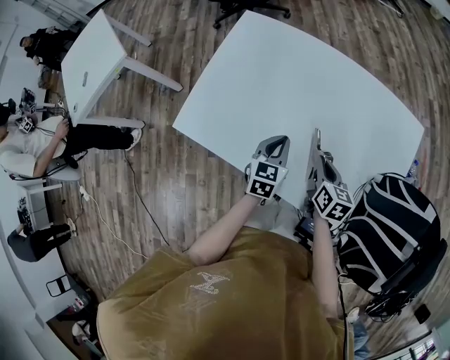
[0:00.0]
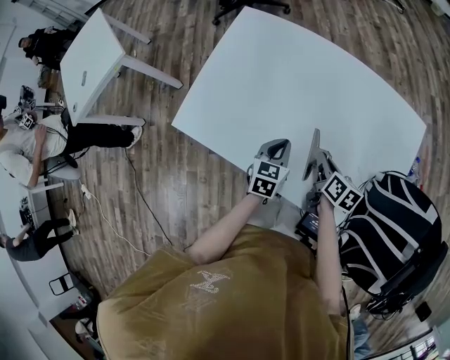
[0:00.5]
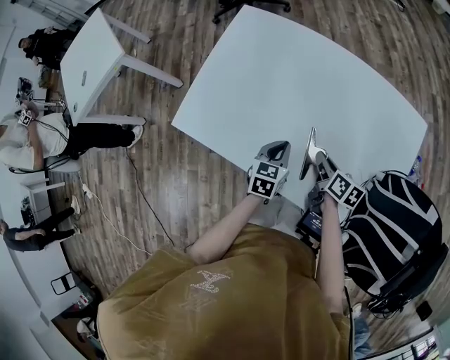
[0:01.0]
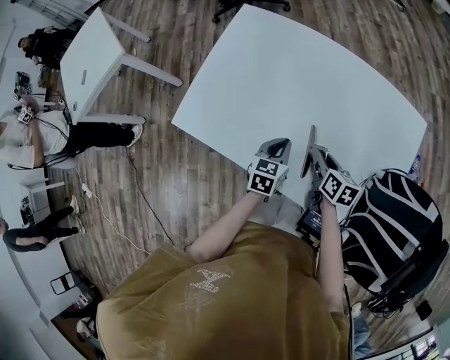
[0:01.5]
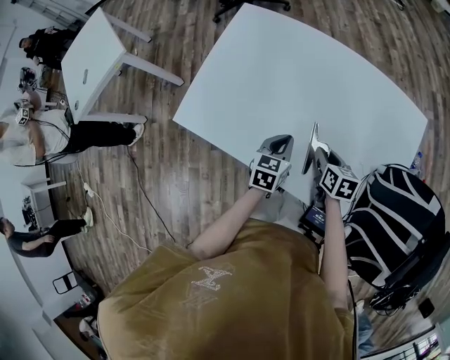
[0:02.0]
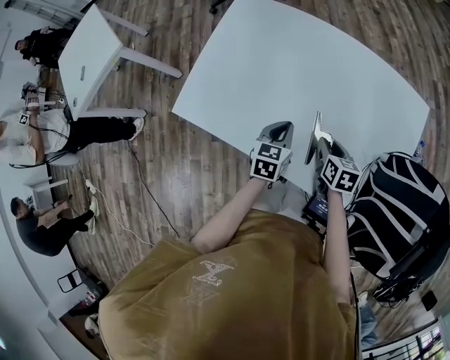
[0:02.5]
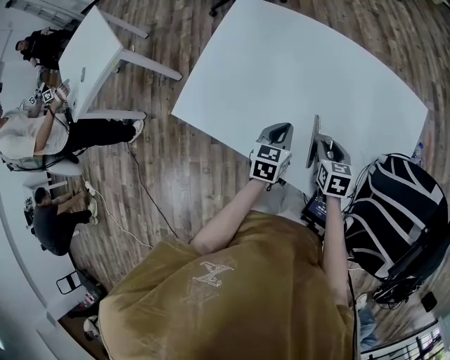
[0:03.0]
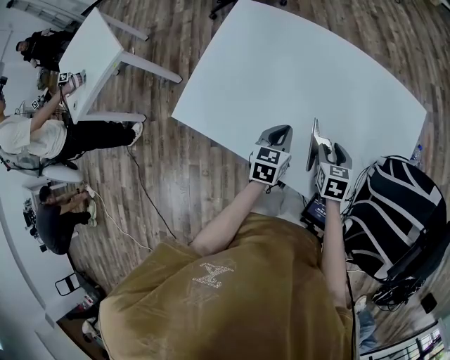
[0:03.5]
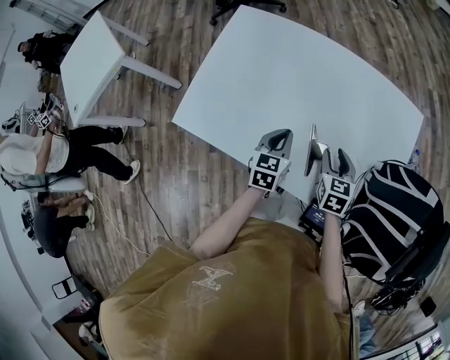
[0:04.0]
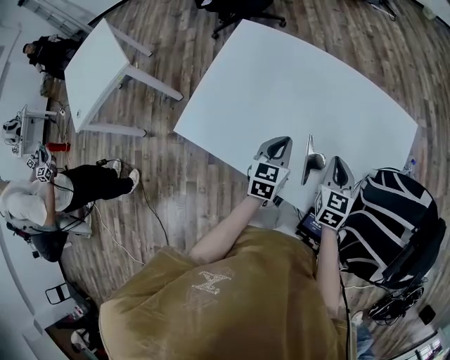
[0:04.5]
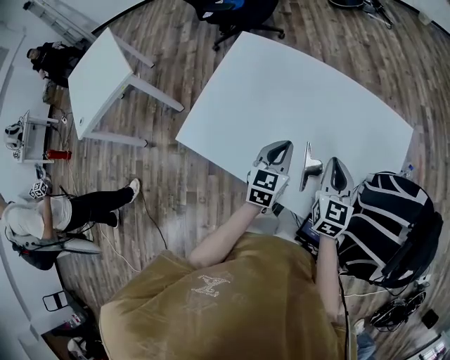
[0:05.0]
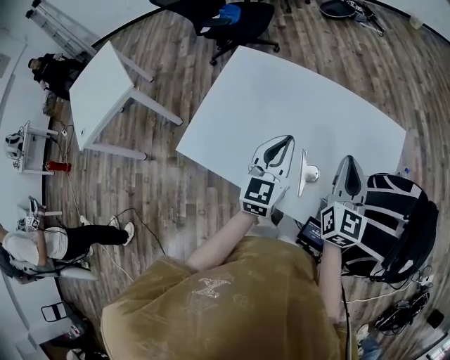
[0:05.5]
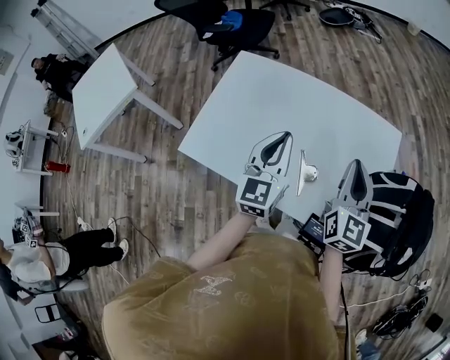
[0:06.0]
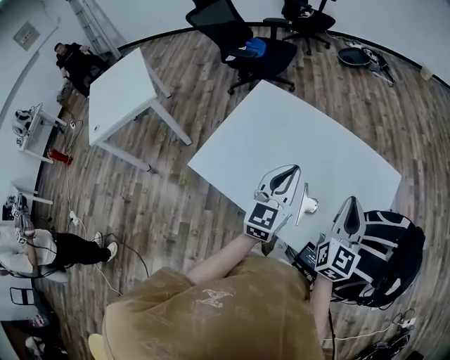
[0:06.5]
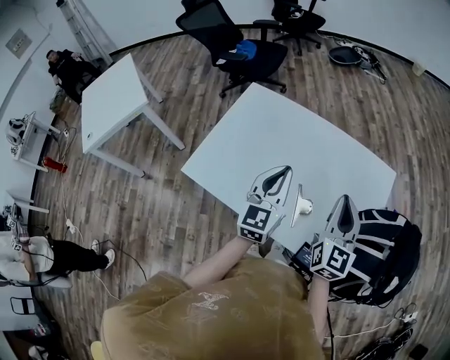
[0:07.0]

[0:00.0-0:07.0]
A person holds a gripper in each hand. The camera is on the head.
0:00.0 to 0:02.0: The right gripper changes place by about 5 cm.
0:02.0 to 0:03.5: The right gripper changes its angle by about 20 degrees, and opens.
0:03.5 to 0:05.0: The left gripper travels upward by roughly 10 cm, while the right gripper goes some 15 cm upward, turns by approximately 30 degrees, and closes.
0:05.0 to 0:07.0: Both grippers travel together upward, some 15 cm. The left gripper swivels roughly 20 degrees.

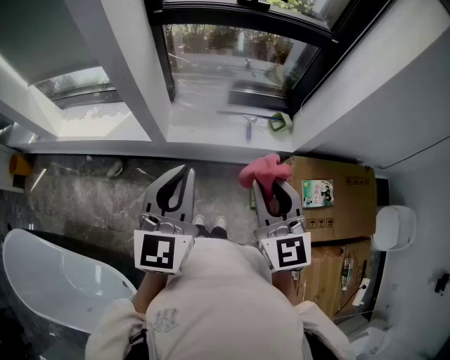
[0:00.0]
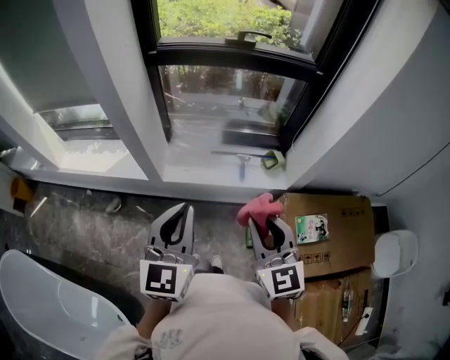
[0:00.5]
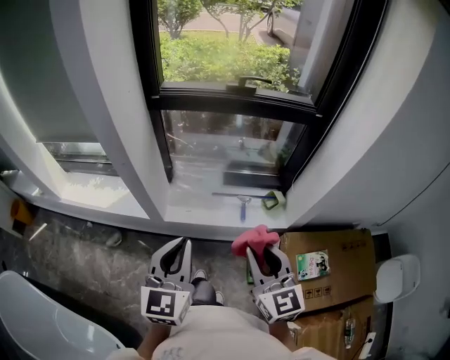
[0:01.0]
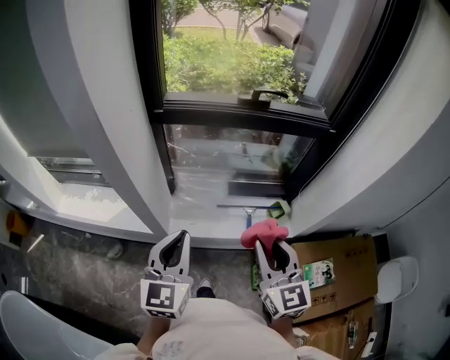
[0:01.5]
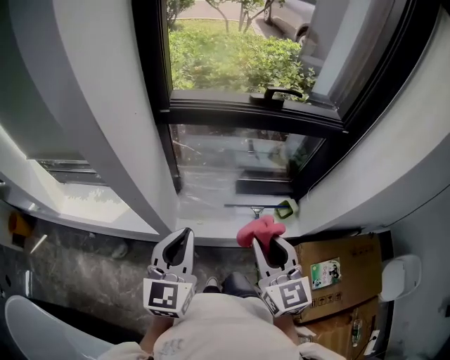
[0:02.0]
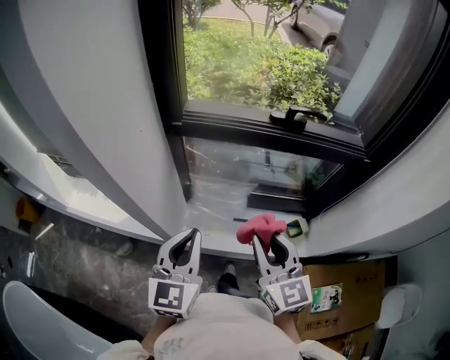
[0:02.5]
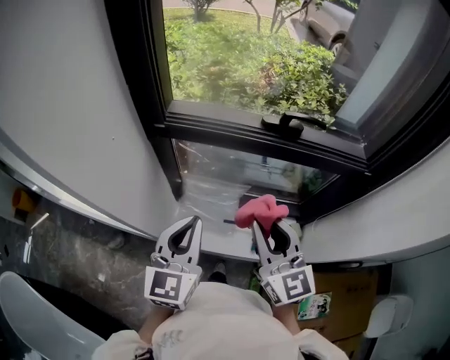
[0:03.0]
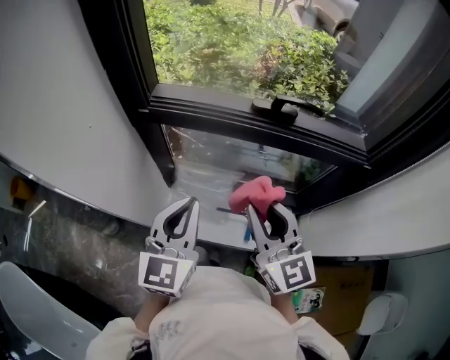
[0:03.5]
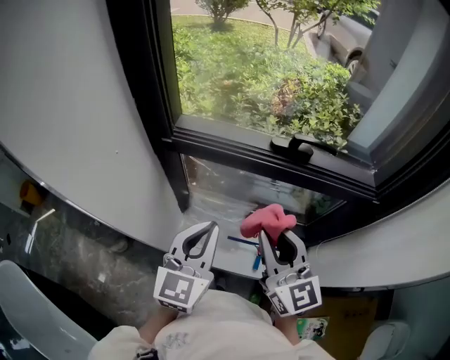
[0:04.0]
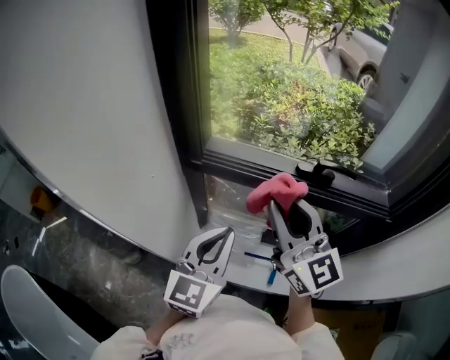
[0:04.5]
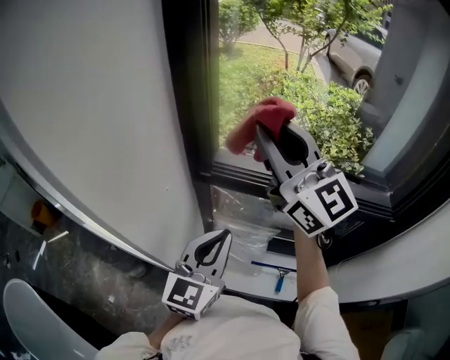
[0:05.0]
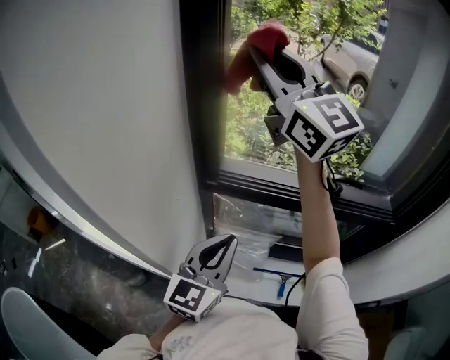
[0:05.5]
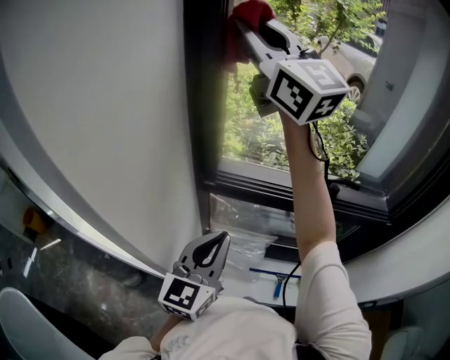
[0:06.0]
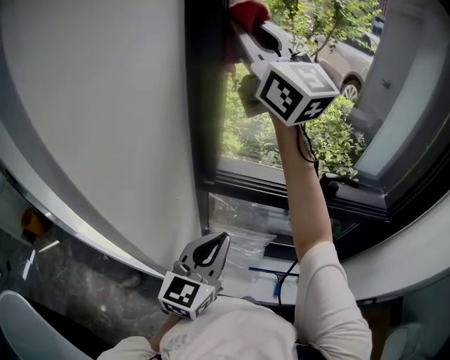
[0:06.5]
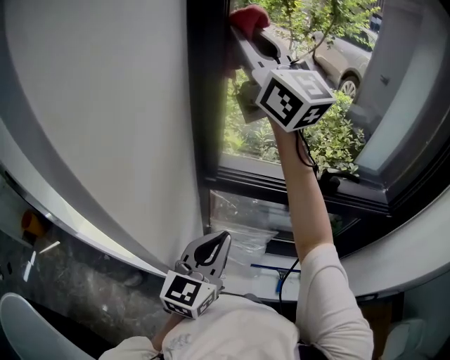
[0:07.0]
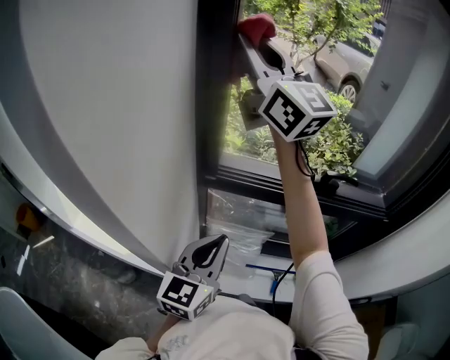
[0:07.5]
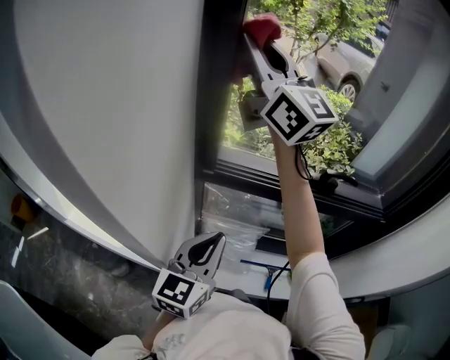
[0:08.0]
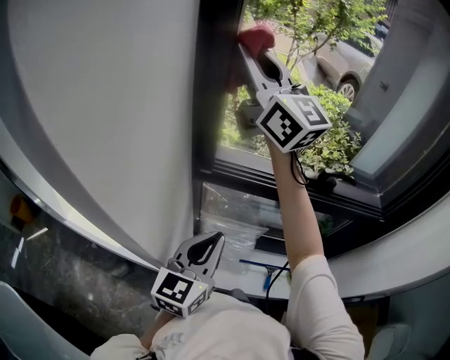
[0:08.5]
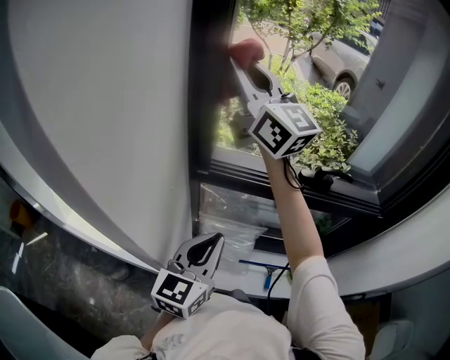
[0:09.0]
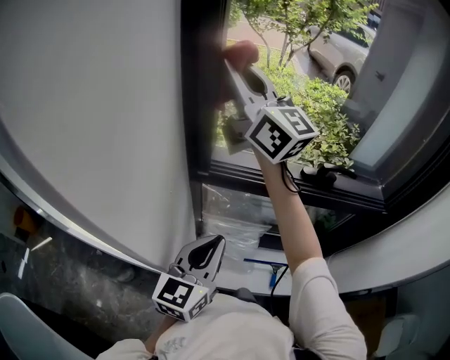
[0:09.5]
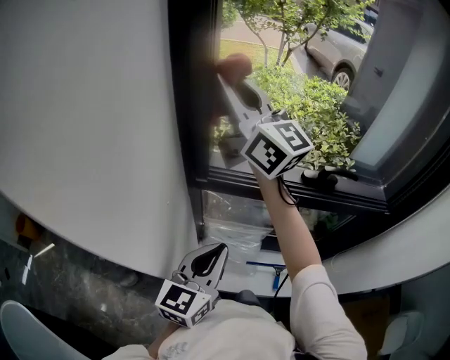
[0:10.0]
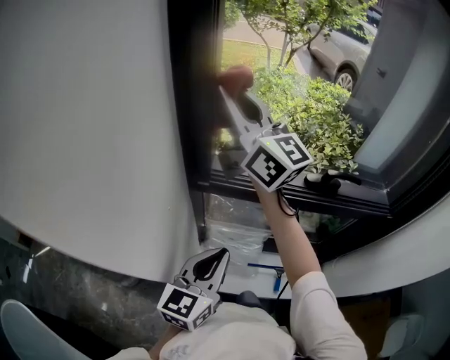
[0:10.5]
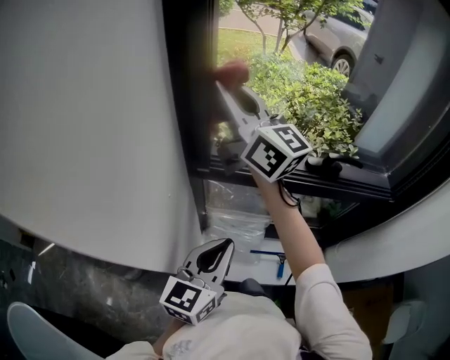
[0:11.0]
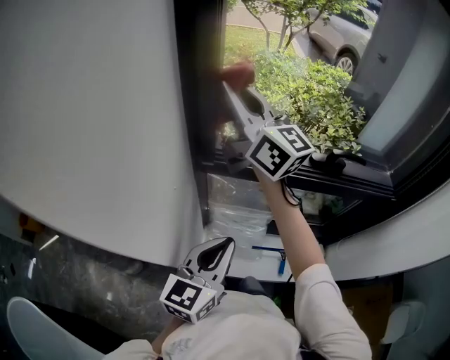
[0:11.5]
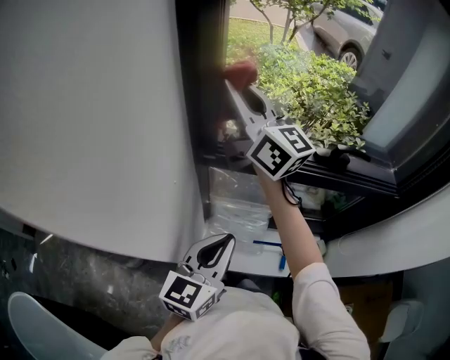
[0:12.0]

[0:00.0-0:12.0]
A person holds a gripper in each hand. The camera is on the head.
0:00.0 to 0:02.0: The grippers both shift forward by roughly 20 cm.
0:02.0 to 0:04.0: The left gripper is displaced forward and to the right by some 20 cm. Meanwhile the right gripper heads forward, covering some 20 cm.
0:04.0 to 0:06.0: The right gripper travels upward, forward and to the left by about 50 cm, and turns by some 40 degrees; the left gripper shifts roughly 10 cm to the left and forward.
0:06.0 to 0:08.0: The right gripper travels downward by about 5 cm.
0:08.0 to 0:10.0: The right gripper shifts about 10 cm downward.
0:10.0 to 0:12.0: The right gripper travels downward by some 10 cm.

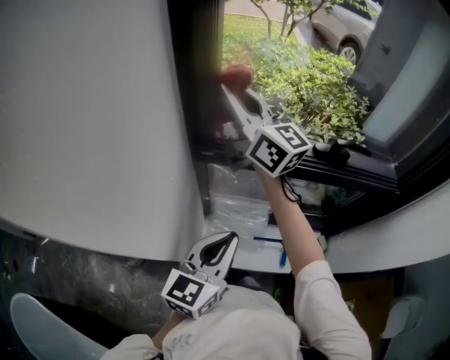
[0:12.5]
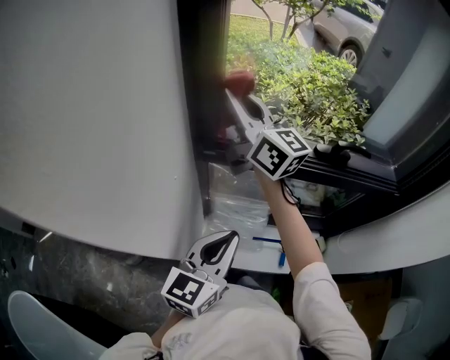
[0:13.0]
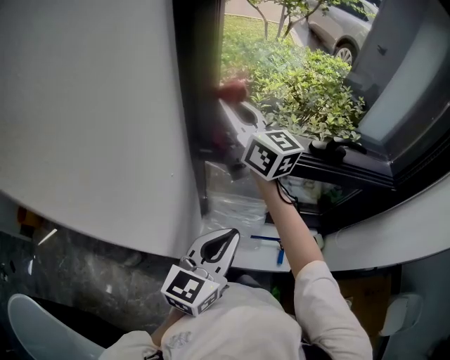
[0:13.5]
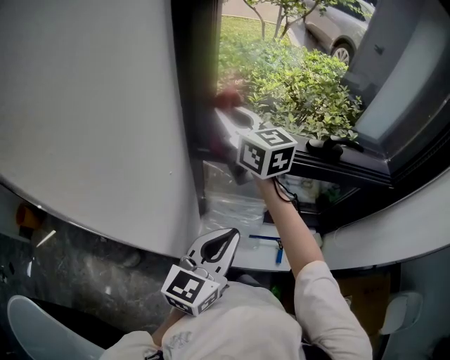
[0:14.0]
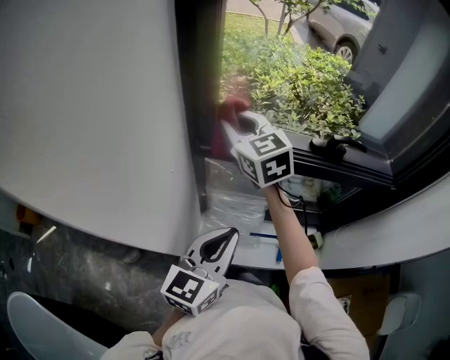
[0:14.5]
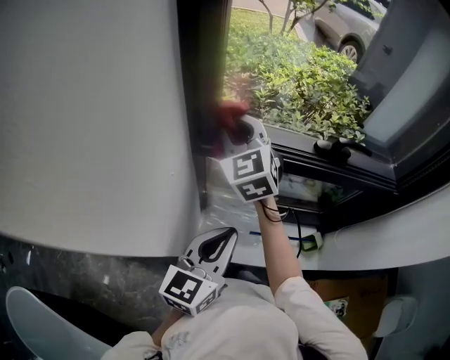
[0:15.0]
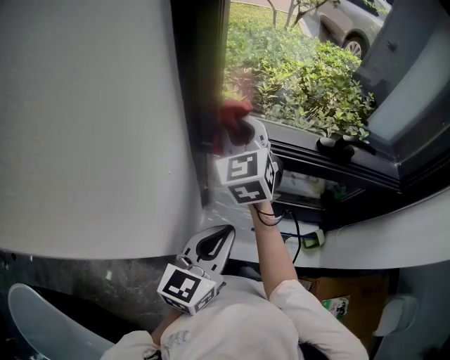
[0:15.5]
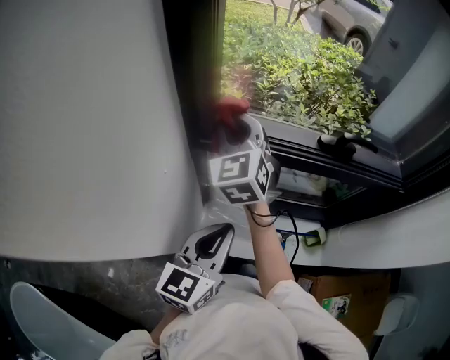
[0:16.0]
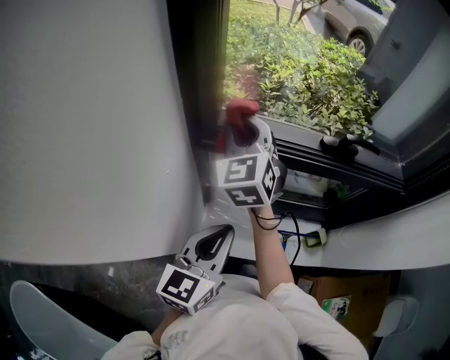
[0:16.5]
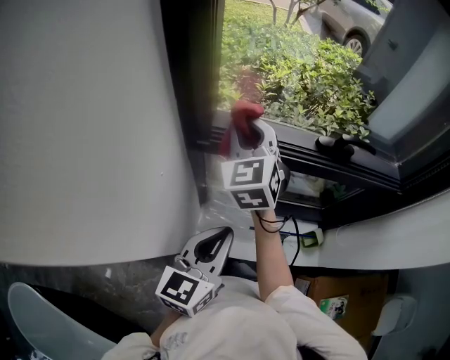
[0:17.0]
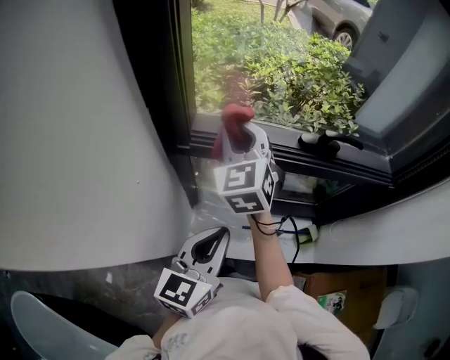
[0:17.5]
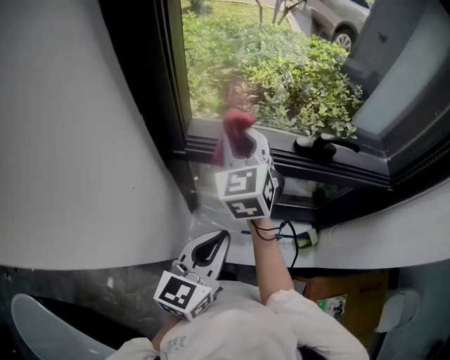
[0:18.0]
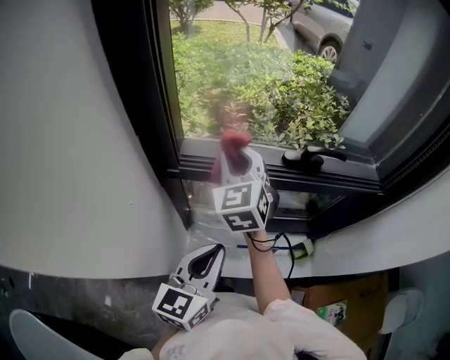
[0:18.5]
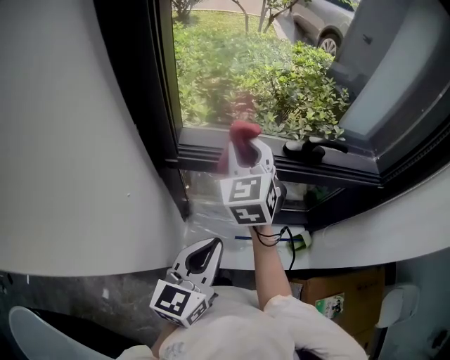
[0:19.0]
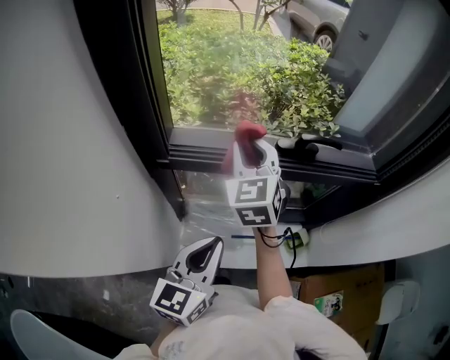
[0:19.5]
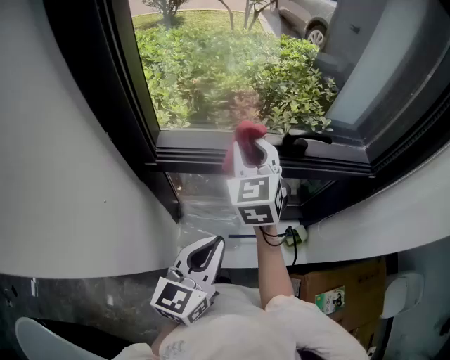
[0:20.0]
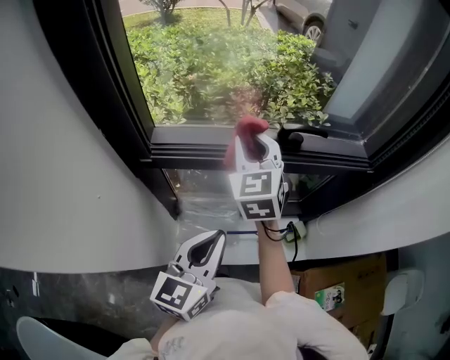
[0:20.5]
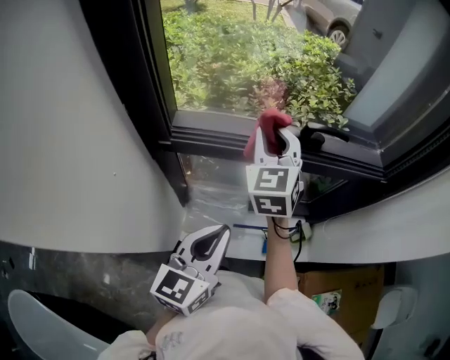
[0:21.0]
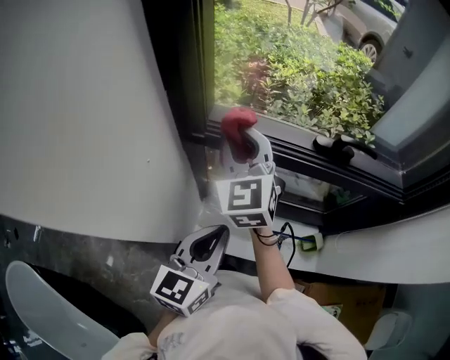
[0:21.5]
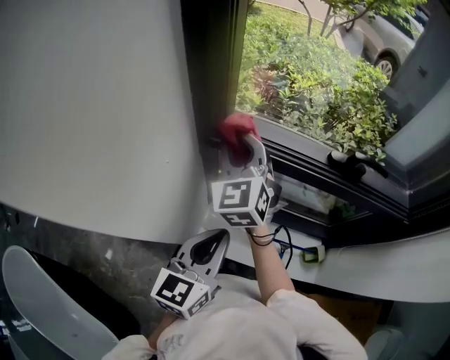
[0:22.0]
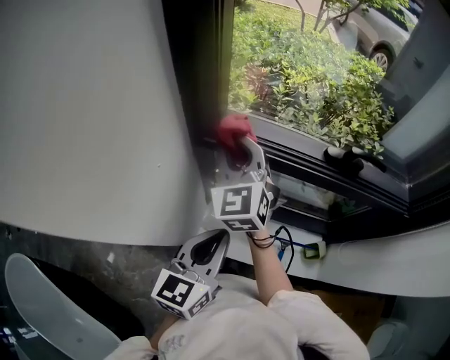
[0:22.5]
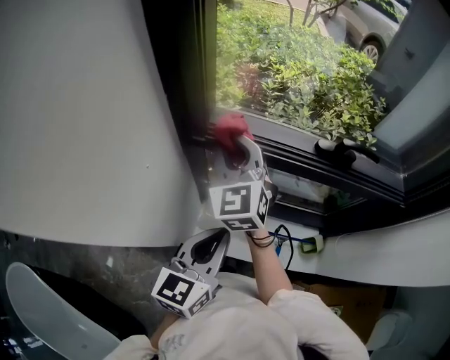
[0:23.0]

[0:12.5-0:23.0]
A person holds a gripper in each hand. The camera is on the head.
0:12.5 to 0:14.5: The right gripper travels downward by approximately 10 cm, and tilts its fingers approximately 30 degrees downward.
0:14.5 to 0:16.5: The right gripper changes its angle by about 20 degrees.
0:16.5 to 0:19.0: The right gripper moves to the right, approximately 10 cm.
0:19.0 to 0:21.0: The right gripper is displaced to the right by about 10 cm.
0:21.0 to 0:23.0: The right gripper travels to the left by roughly 15 cm, and turns by about 20 degrees. Meanwhile the left gripper travels to the left by approximately 5 cm.
